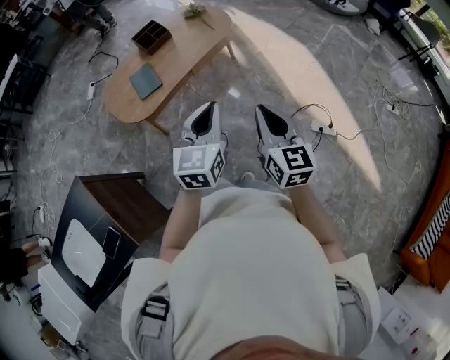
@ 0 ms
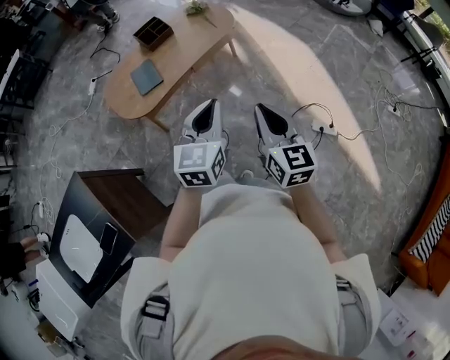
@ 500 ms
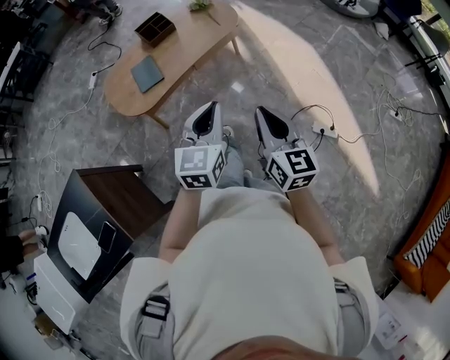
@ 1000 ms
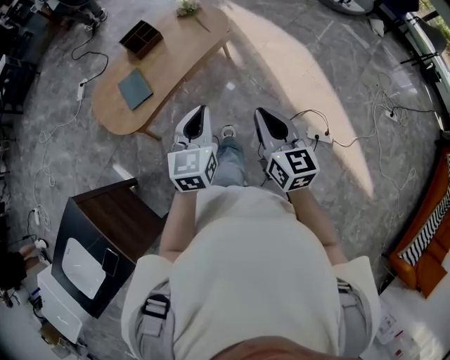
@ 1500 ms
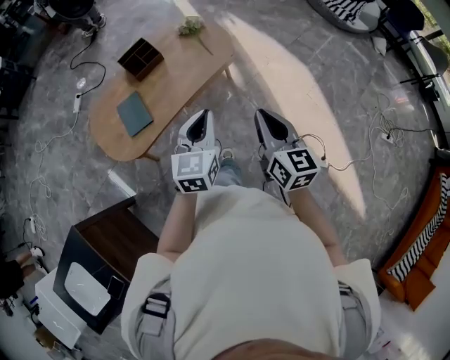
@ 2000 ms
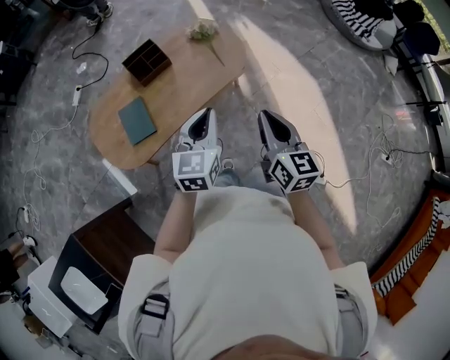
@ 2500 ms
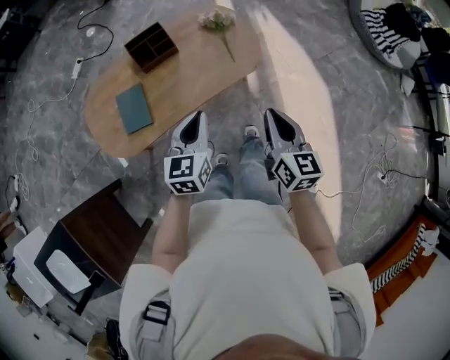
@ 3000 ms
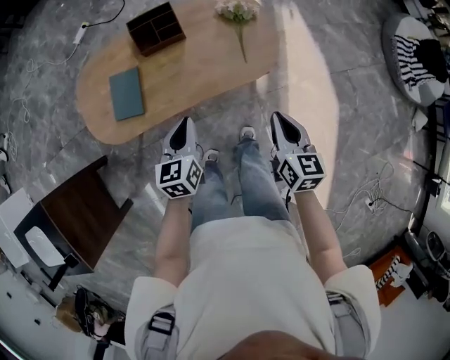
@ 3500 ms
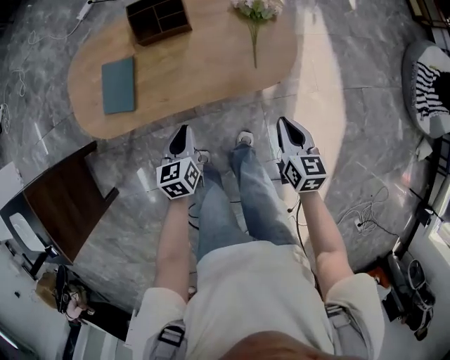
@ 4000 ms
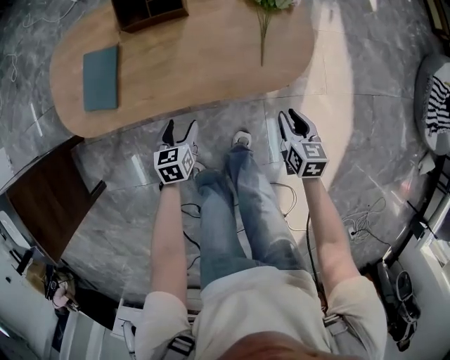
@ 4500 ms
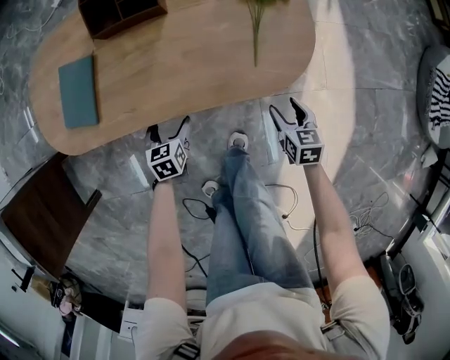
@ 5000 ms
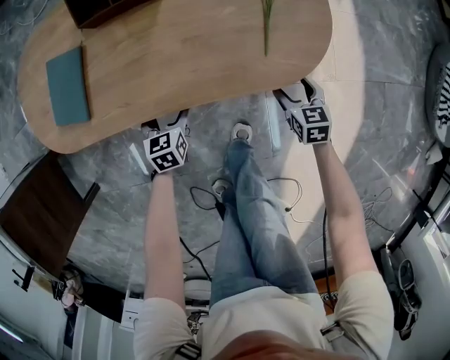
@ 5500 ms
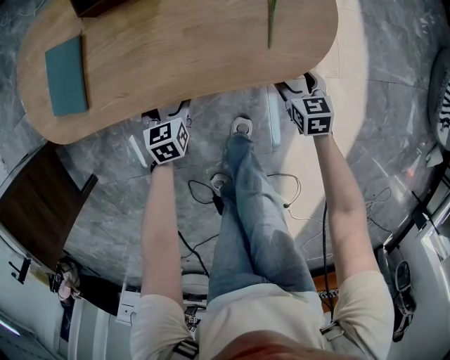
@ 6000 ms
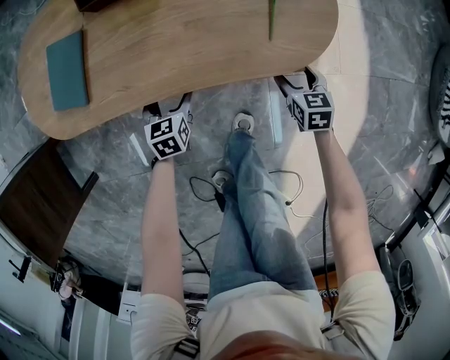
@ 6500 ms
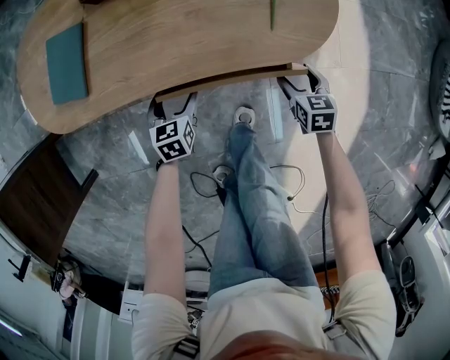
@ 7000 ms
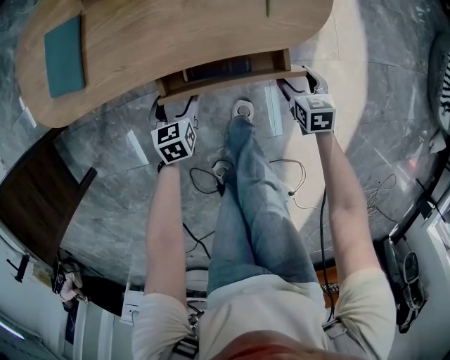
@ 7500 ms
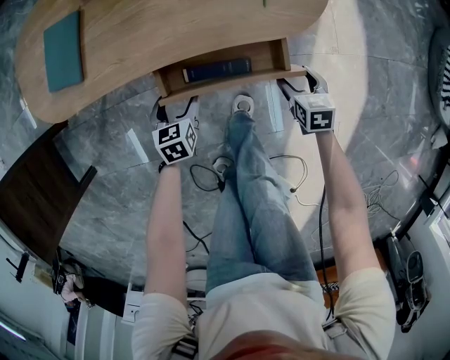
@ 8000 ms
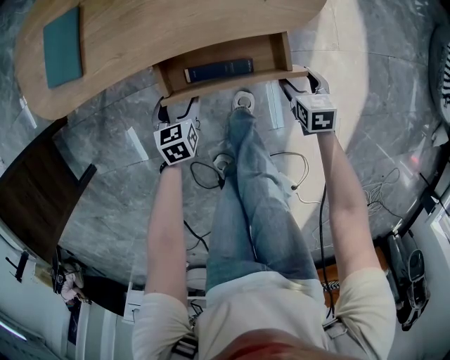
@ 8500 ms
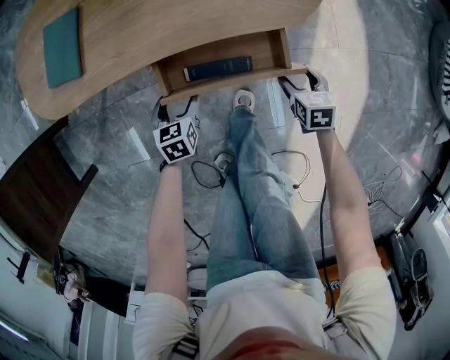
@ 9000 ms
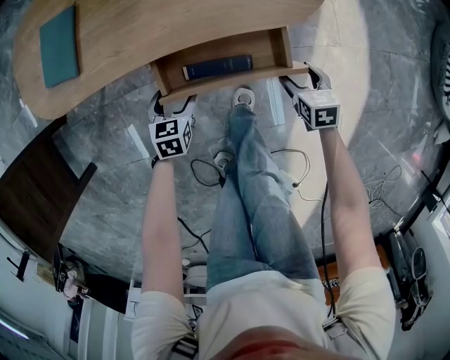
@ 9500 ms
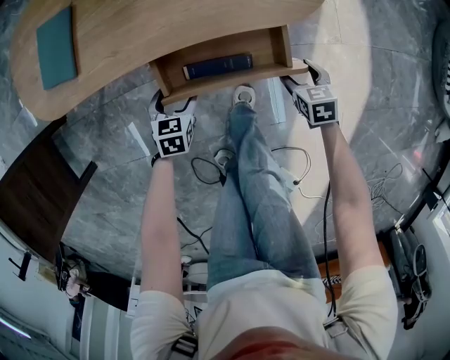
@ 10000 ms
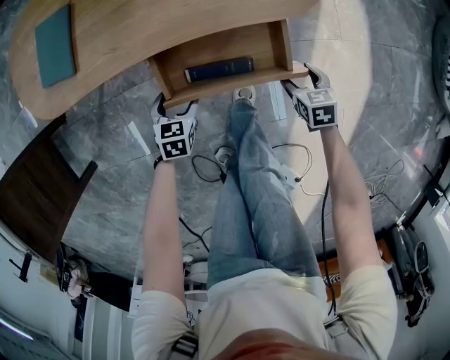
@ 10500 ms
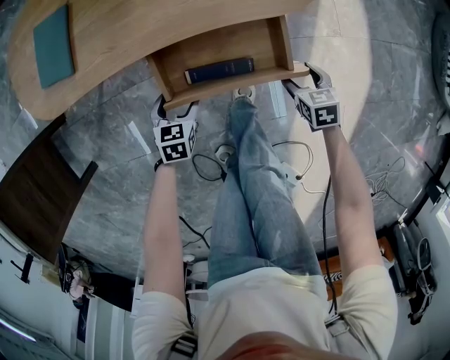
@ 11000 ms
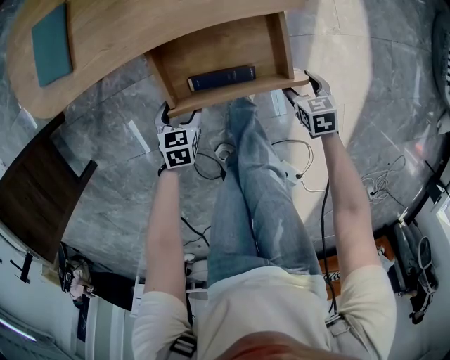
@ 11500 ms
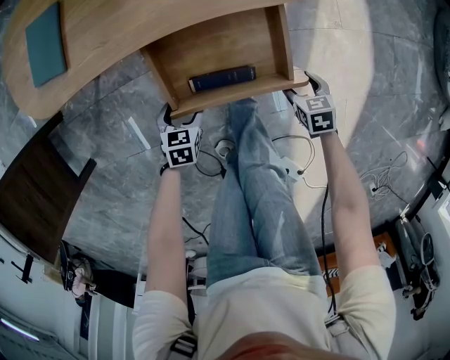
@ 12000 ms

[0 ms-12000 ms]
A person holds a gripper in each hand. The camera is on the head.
0 ms to 2000 ms: Both grippers move forward, about 25 cm.
2000 ms to 4000 ms: The right gripper changes place by roughly 40 cm, and turns by approximately 40 degrees, while the left gripper heads downward, covering roughly 30 cm, and turns by about 50 degrees.
4000 ms to 6000 ms: Both grippers move downward, roughly 30 cm. The left gripper opens up, while the right gripper swivels approximately 20 degrees, and opens.
6000 ms to 8000 ms: Both grippers move backward, roughly 10 cm.
8000 ms to 10000 ms: The grippers move only a little.
10000 ms to 12000 ms: Both grippers move backward, roughly 10 cm.

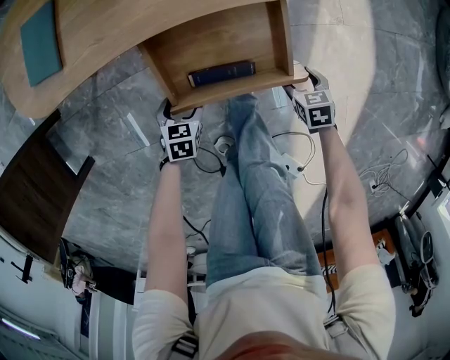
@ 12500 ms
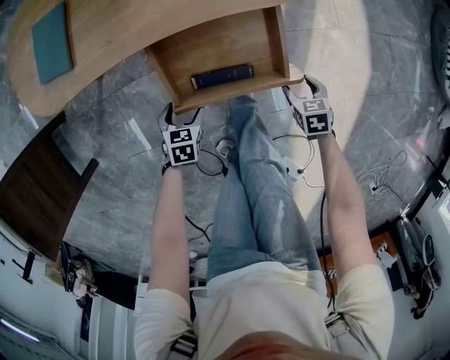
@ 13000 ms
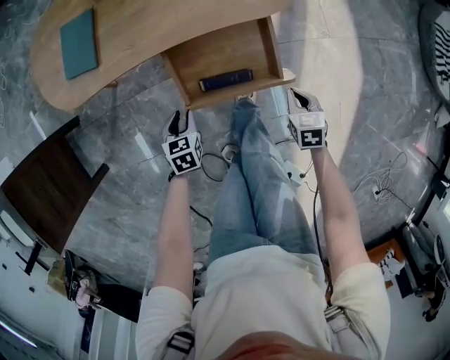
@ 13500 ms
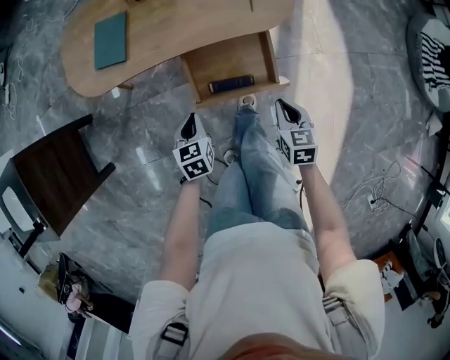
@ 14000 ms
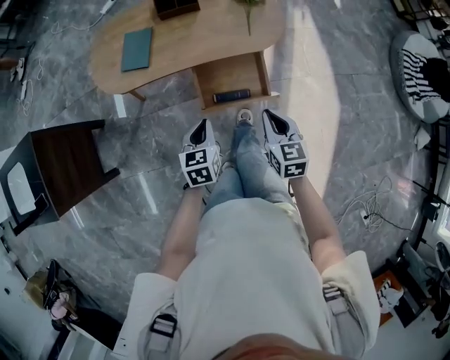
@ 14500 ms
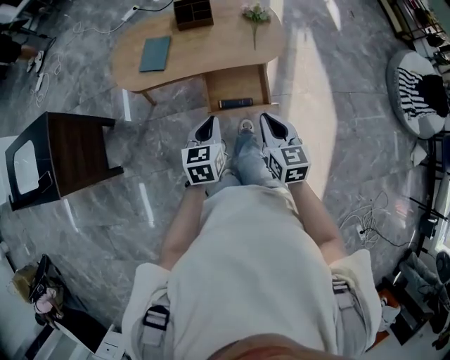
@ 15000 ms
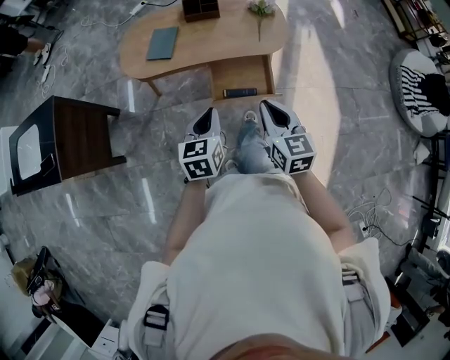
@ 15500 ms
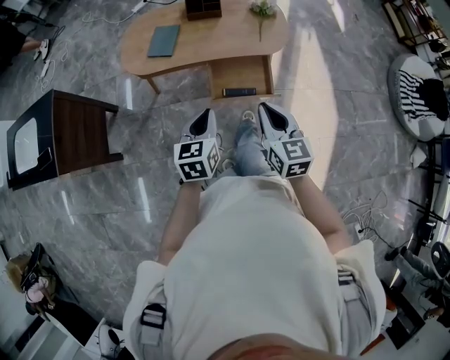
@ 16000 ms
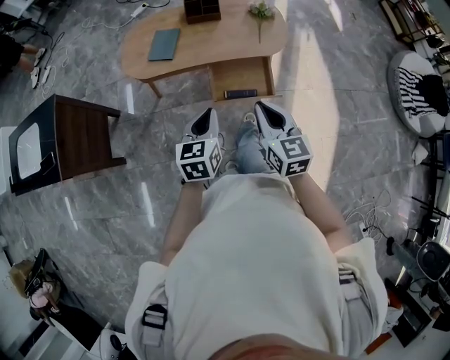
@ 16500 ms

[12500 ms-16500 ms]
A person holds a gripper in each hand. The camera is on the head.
12500 ms to 14500 ms: The grippers both shift upward by roughly 40 cm. The left gripper turns by some 30 degrees, and closes, while the right gripper tips its fingers upward by some 30 degrees, and closes its fingers.
14500 ms to 16500 ms: The right gripper is displaced upward, backward and to the left by approximately 20 cm; the left gripper travels upward and backward by roughly 20 cm.

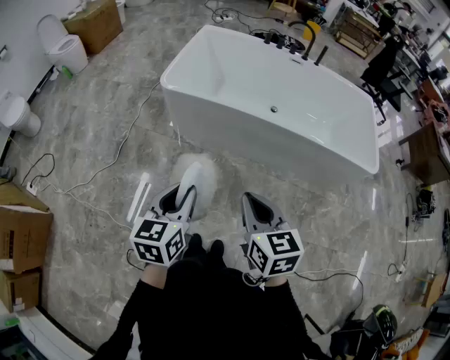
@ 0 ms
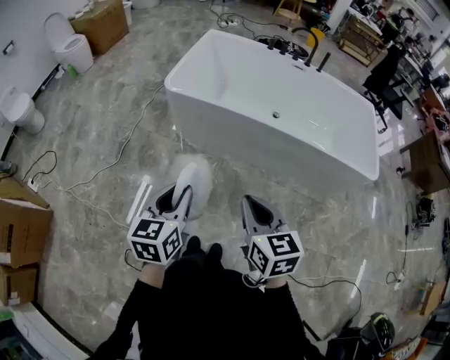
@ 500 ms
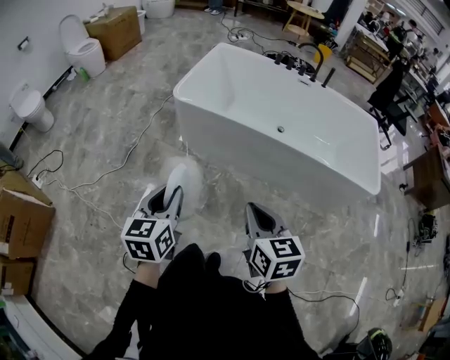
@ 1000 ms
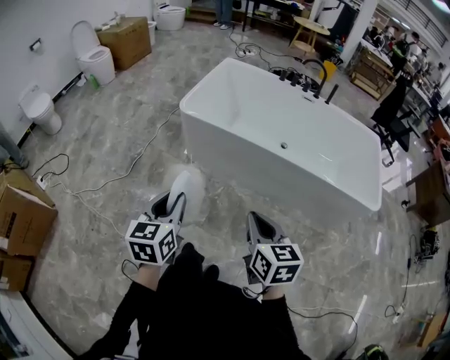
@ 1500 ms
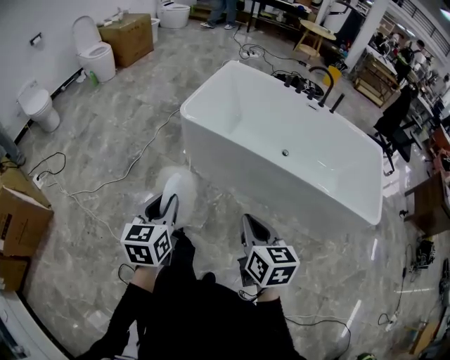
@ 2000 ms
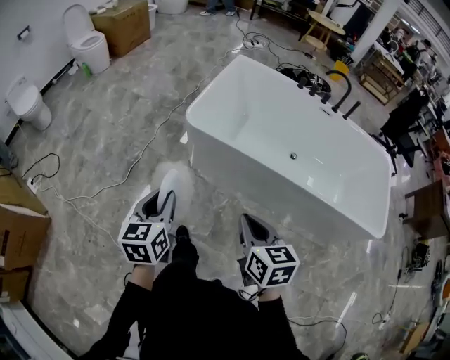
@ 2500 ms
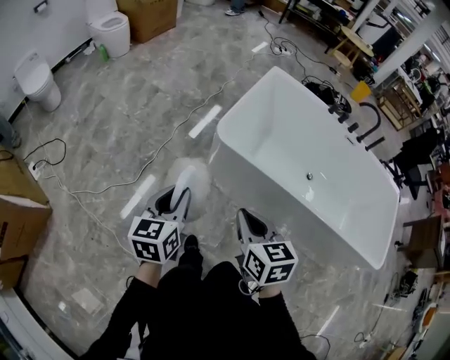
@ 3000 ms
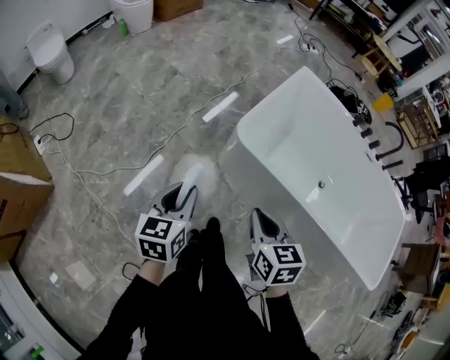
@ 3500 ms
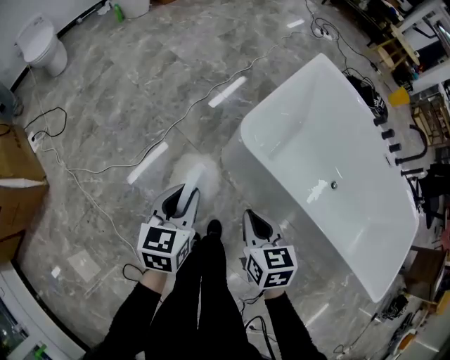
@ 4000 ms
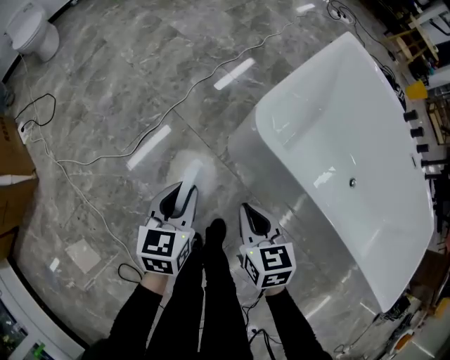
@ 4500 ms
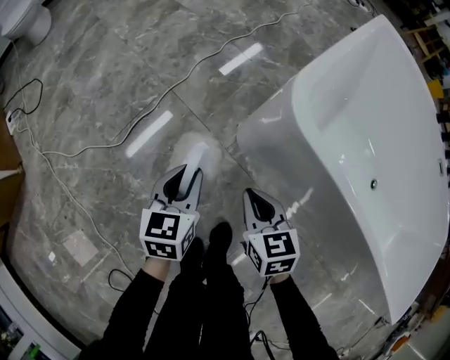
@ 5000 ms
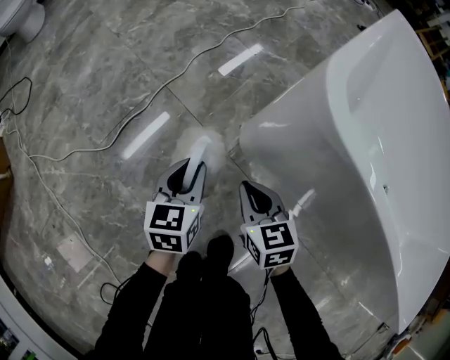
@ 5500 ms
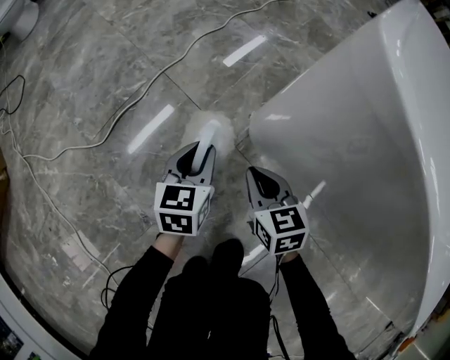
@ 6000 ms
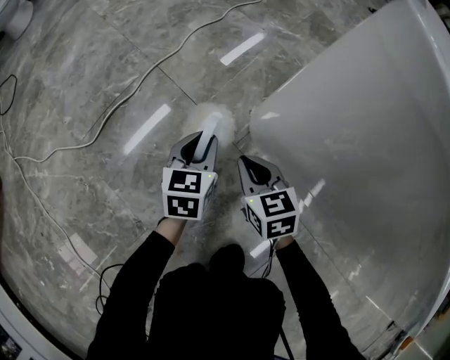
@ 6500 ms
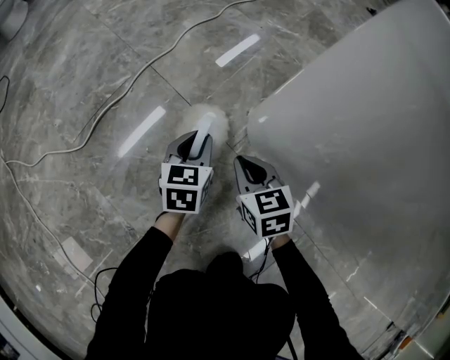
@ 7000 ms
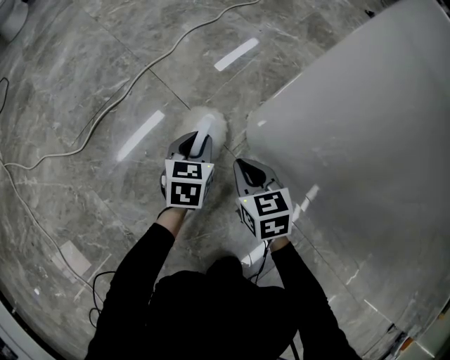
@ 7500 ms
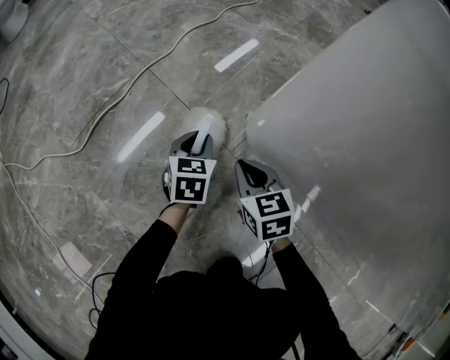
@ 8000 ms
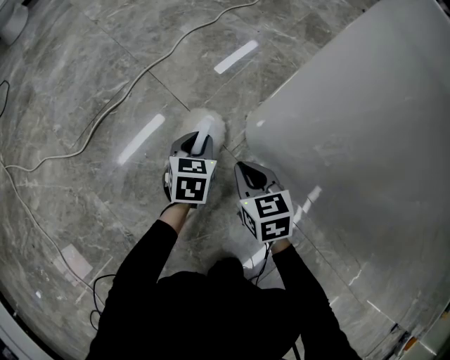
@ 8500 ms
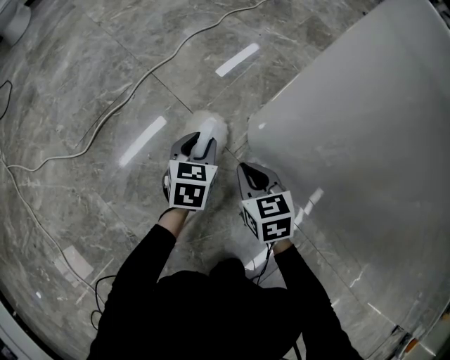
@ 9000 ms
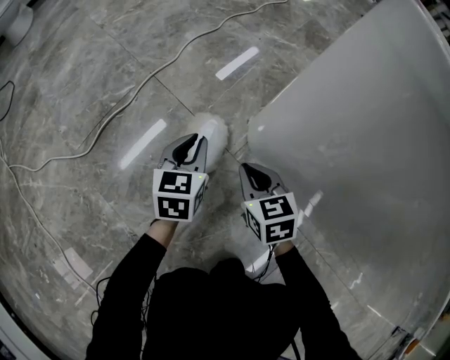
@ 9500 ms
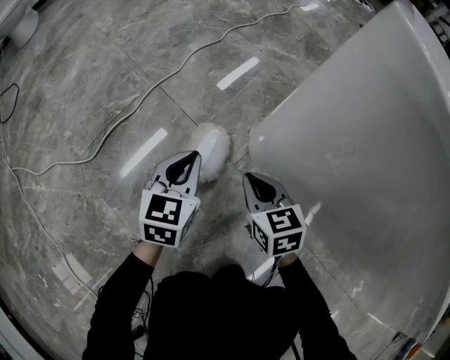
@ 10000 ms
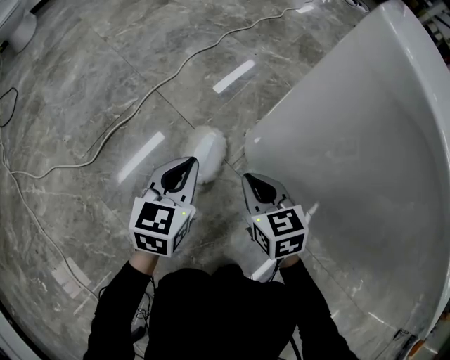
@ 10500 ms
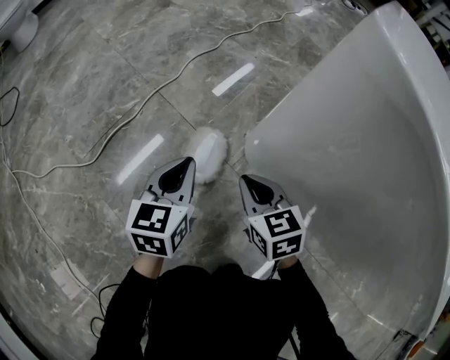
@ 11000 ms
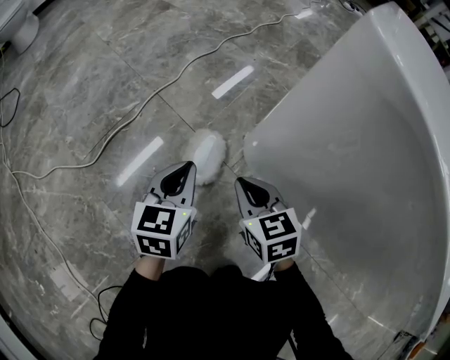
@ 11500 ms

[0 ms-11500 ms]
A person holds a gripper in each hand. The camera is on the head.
0 ms to 2000 ms: The right gripper ends up some 5 cm from where it was. The left gripper moves to the left, some 5 cm.
2000 ms to 4000 ms: The left gripper goes roughly 35 cm forward; the right gripper heads forward and to the left, covering roughly 40 cm, and rotates about 30 degrees.
4000 ms to 6000 ms: Both grippers move downward, roughly 50 cm.
6000 ms to 7500 ms: Both grippers travel together downward, some 10 cm.
7500 ms to 9500 ms: The left gripper heads upward, covering about 5 cm.
9500 ms to 11500 ms: The grippers both shift upward by about 5 cm.
